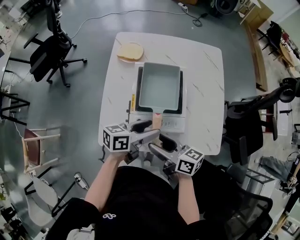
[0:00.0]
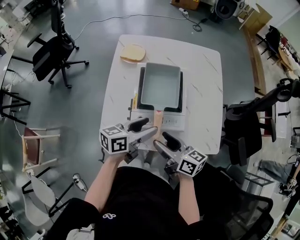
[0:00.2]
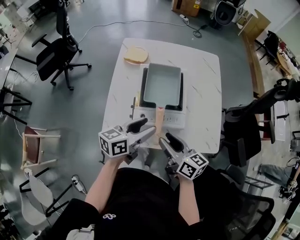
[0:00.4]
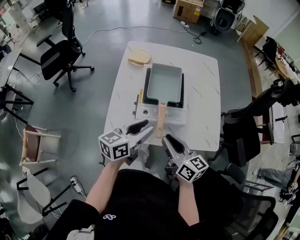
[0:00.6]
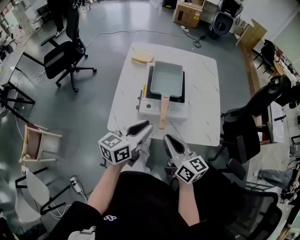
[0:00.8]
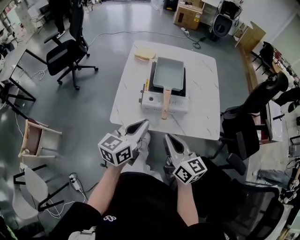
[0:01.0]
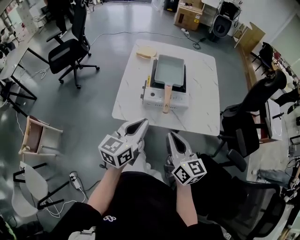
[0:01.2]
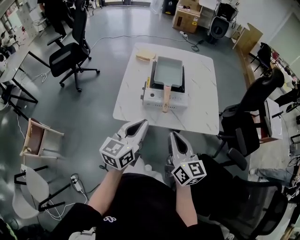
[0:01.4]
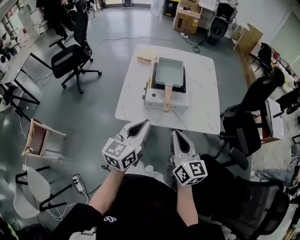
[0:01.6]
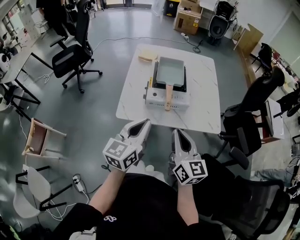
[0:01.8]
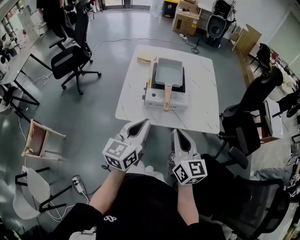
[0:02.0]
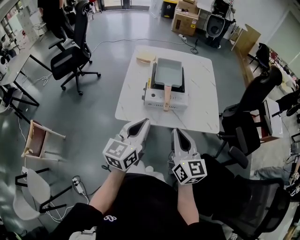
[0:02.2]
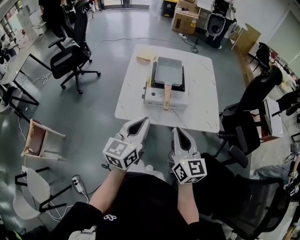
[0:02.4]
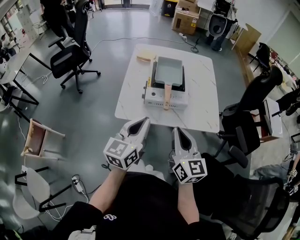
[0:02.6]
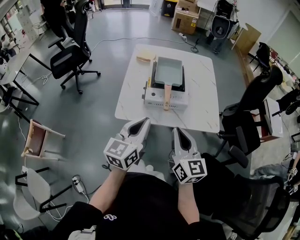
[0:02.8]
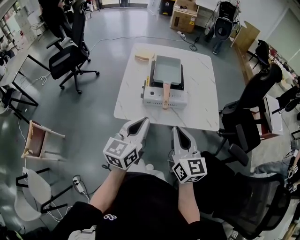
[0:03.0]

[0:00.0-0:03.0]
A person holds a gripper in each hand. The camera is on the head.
0.0 to 1.6 s: The grippers both shift backward and upward by roughly 25 cm. The left gripper changes its angle by roughly 50 degrees, and closes up. The right gripper turns by about 40 degrees, and closes up.
1.6 to 3.0 s: There are only small adjustments of the grippers.

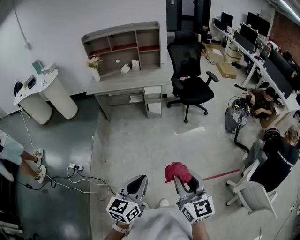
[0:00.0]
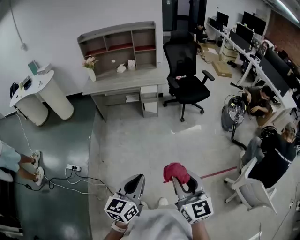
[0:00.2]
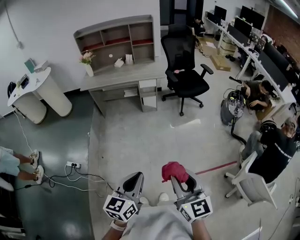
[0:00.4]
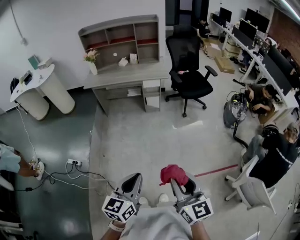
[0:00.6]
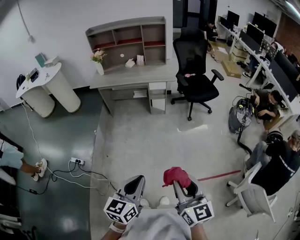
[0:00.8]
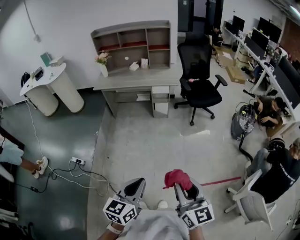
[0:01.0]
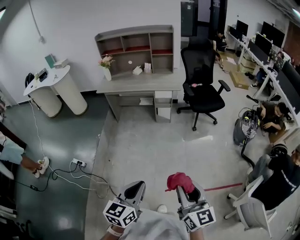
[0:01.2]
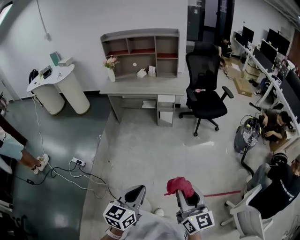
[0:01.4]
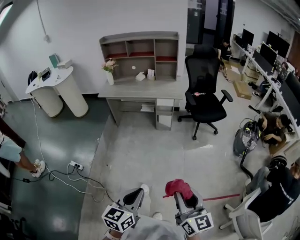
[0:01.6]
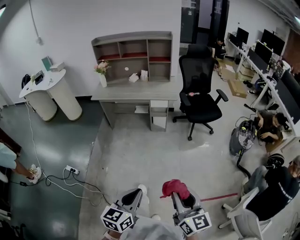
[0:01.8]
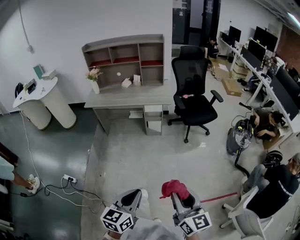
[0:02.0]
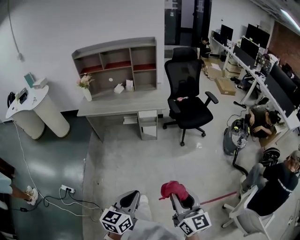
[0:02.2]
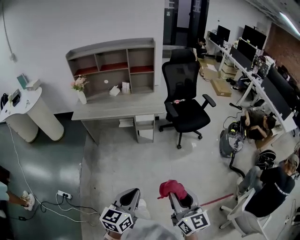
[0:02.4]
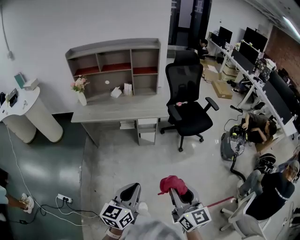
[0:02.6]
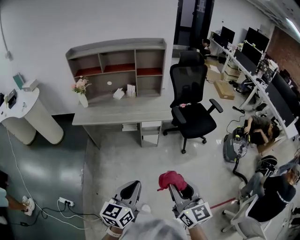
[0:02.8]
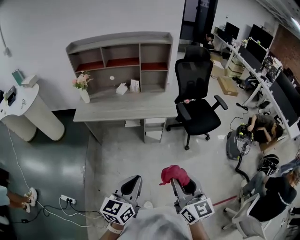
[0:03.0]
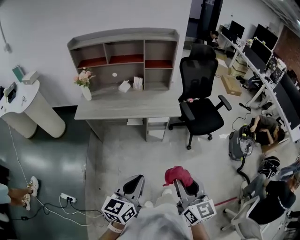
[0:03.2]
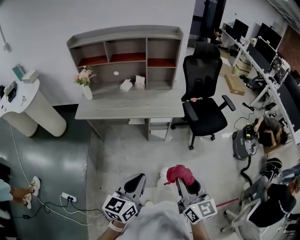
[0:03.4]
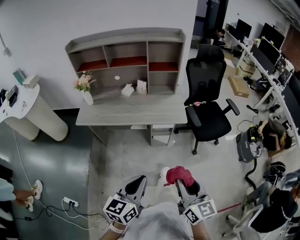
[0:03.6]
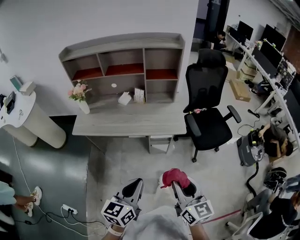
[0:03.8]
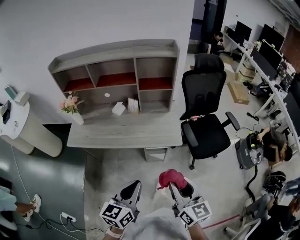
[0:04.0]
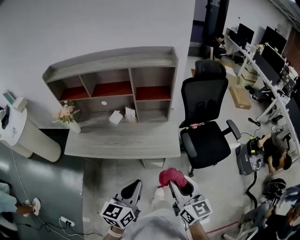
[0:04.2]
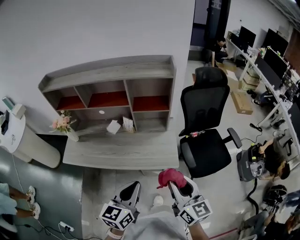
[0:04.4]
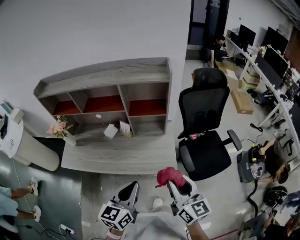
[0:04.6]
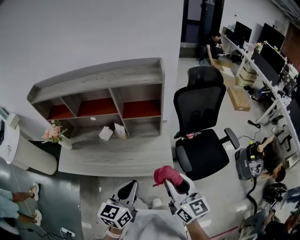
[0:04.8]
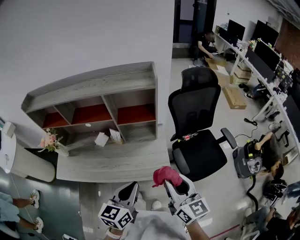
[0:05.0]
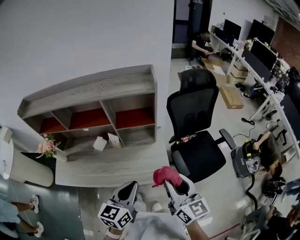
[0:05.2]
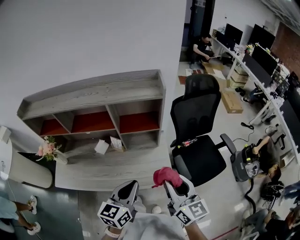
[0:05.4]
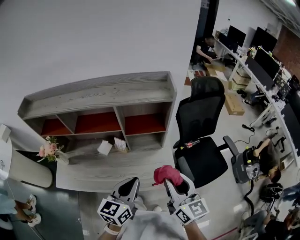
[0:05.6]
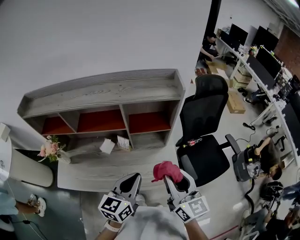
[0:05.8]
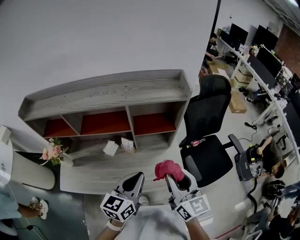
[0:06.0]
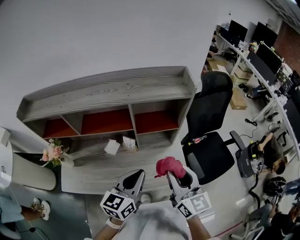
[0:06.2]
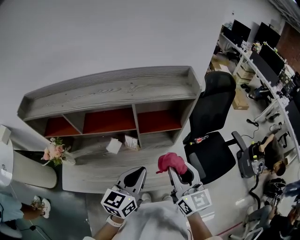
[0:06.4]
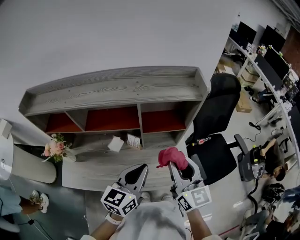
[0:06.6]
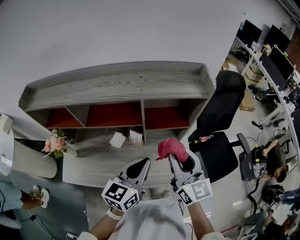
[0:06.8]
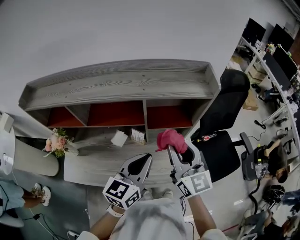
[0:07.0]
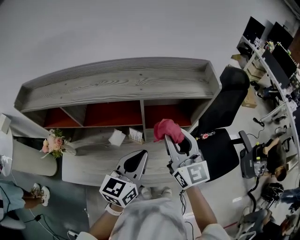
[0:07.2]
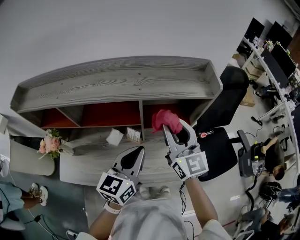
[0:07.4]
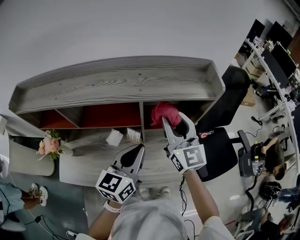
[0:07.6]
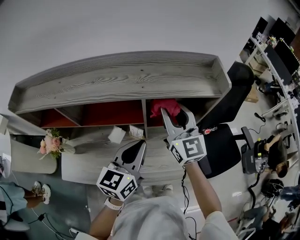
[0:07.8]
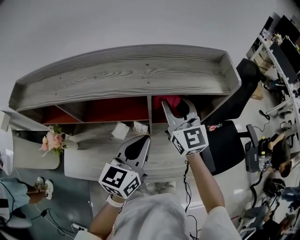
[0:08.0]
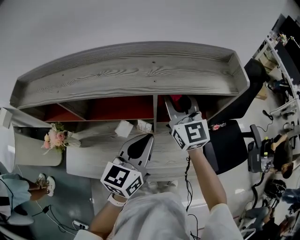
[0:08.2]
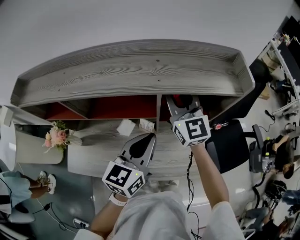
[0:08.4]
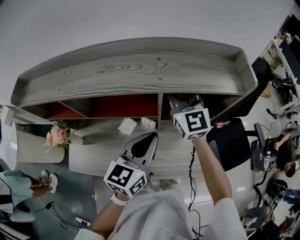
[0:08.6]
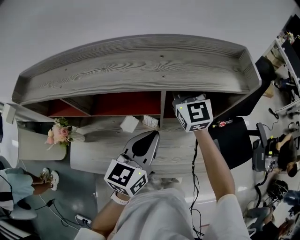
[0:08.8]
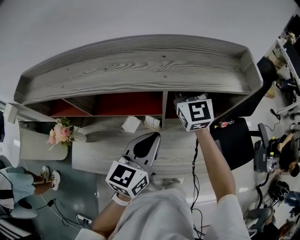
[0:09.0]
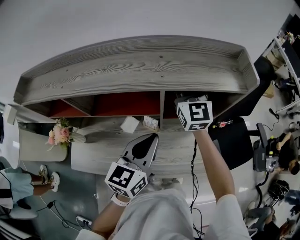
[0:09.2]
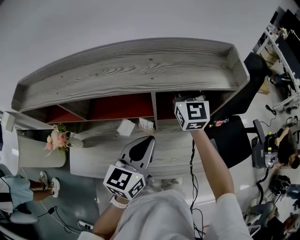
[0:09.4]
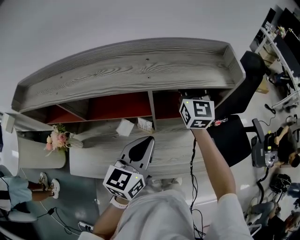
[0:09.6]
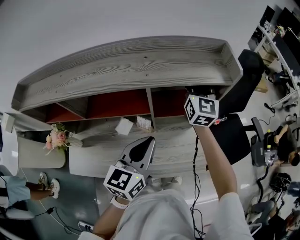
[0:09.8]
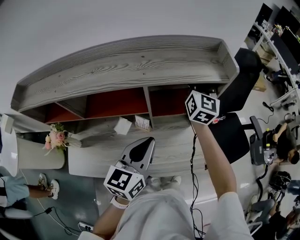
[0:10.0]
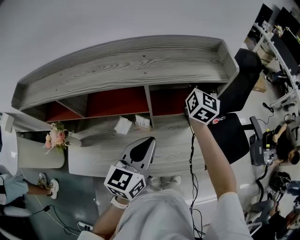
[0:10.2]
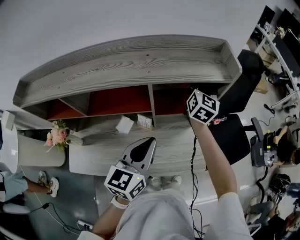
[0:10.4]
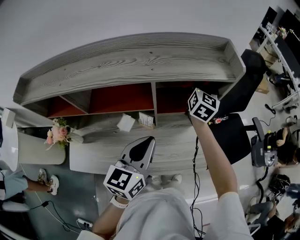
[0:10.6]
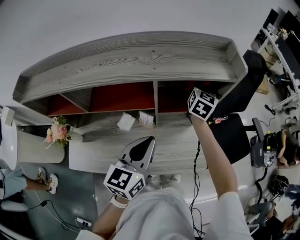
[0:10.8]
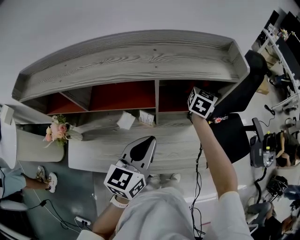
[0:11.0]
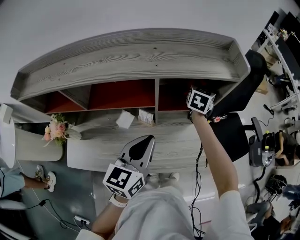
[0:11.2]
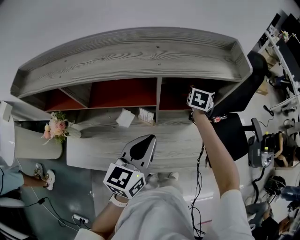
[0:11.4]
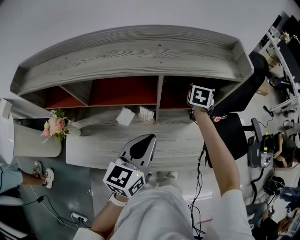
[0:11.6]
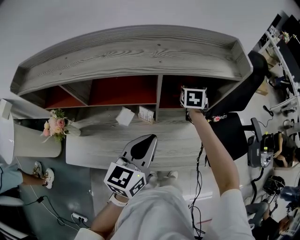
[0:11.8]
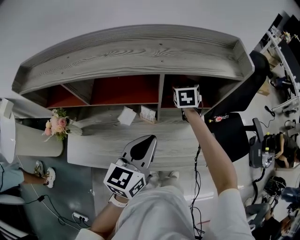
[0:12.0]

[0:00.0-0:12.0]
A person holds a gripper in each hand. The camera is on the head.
0.0 to 1.6 s: The right gripper changes place by roughly 5 cm.
1.6 to 3.0 s: Both grippers move forward, approximately 40 cm.
3.0 to 4.4 s: The pair of grippers is taken forward, about 40 cm.
4.4 to 6.0 s: The right gripper heads forward and to the left, covering approximately 20 cm. The left gripper is displaced forward by some 20 cm.
6.0 to 7.6 s: The left gripper shifts about 15 cm forward and to the left, while the right gripper moves forward, some 20 cm.
7.6 to 9.0 s: The right gripper heads forward and to the left, covering roughly 15 cm.
9.0 to 10.4 s: The right gripper travels to the right by approximately 15 cm, and changes its angle by approximately 40 degrees.
10.4 to 12.0 s: The right gripper goes about 15 cm downward and to the left, and tilts its fingers roughly 40 degrees downward.

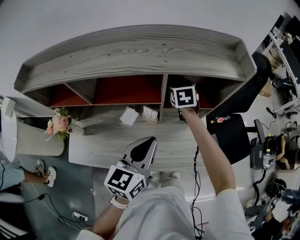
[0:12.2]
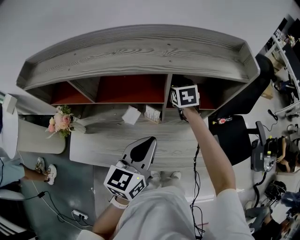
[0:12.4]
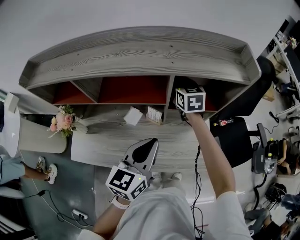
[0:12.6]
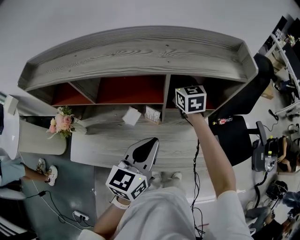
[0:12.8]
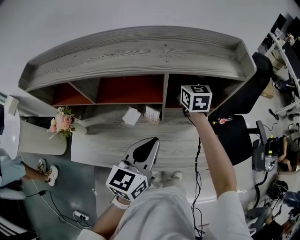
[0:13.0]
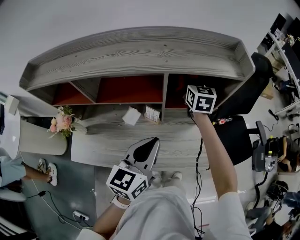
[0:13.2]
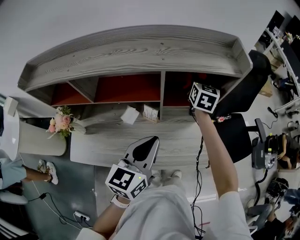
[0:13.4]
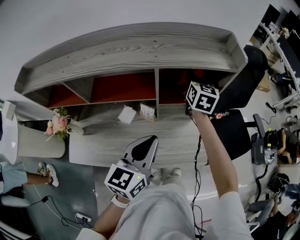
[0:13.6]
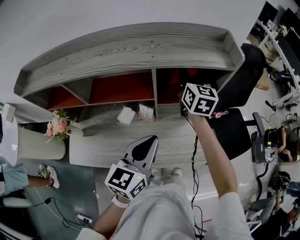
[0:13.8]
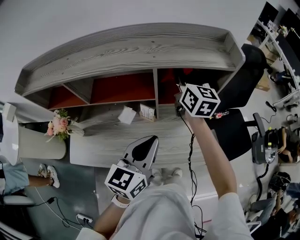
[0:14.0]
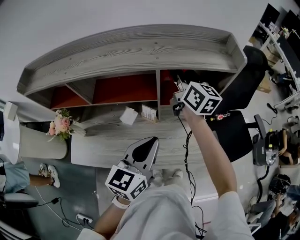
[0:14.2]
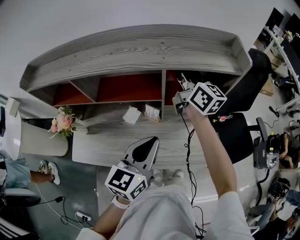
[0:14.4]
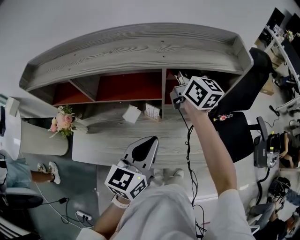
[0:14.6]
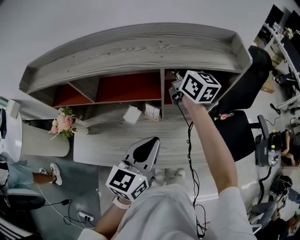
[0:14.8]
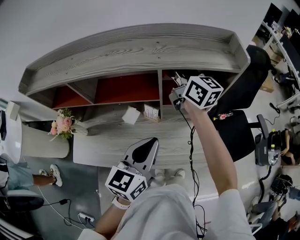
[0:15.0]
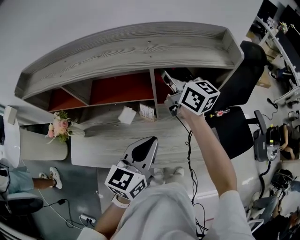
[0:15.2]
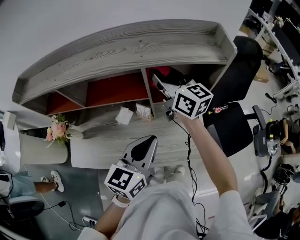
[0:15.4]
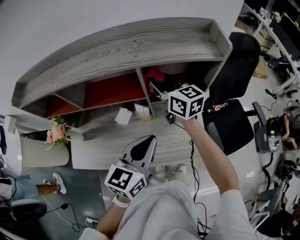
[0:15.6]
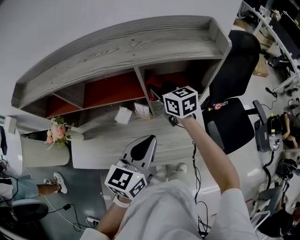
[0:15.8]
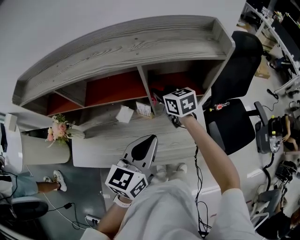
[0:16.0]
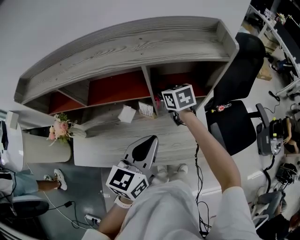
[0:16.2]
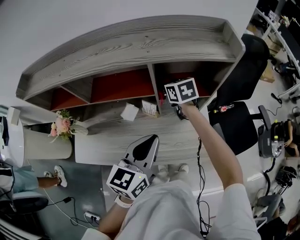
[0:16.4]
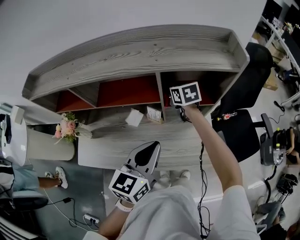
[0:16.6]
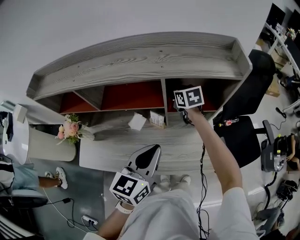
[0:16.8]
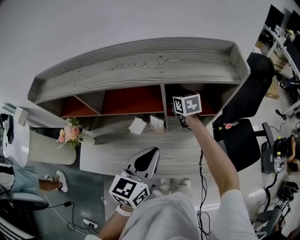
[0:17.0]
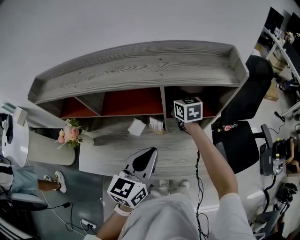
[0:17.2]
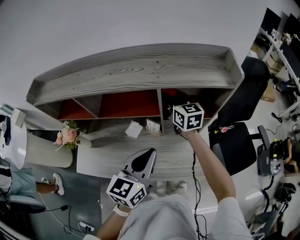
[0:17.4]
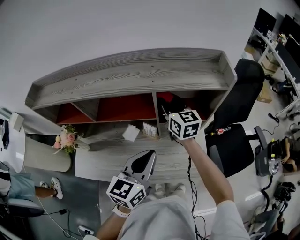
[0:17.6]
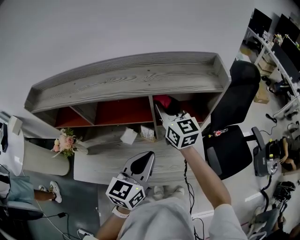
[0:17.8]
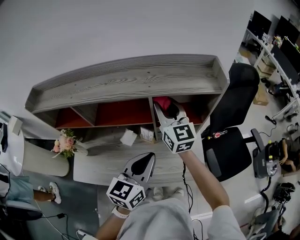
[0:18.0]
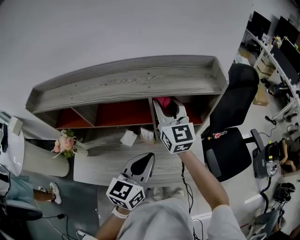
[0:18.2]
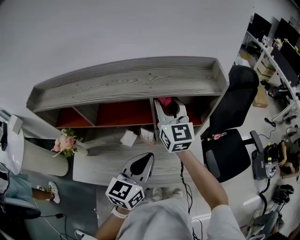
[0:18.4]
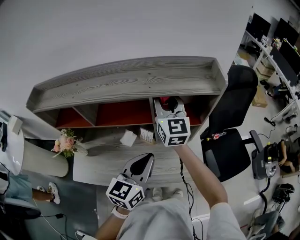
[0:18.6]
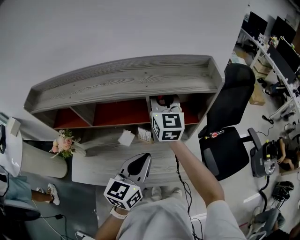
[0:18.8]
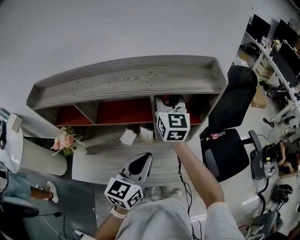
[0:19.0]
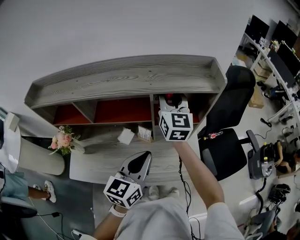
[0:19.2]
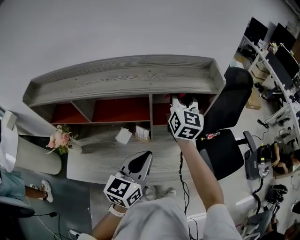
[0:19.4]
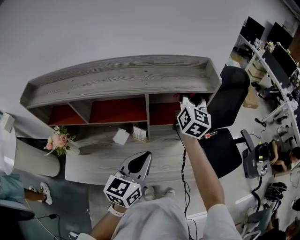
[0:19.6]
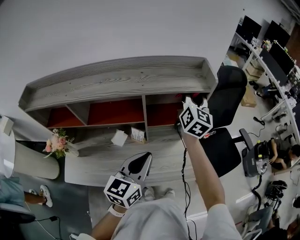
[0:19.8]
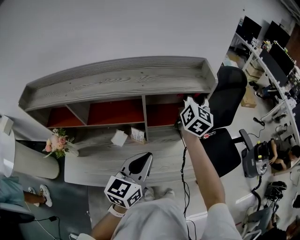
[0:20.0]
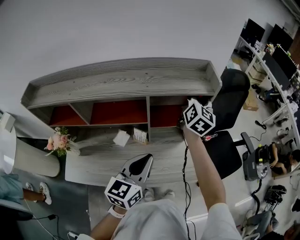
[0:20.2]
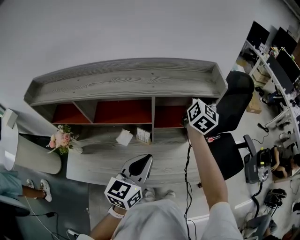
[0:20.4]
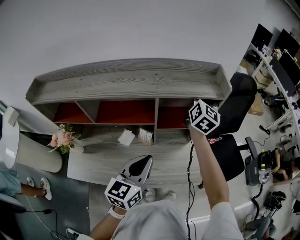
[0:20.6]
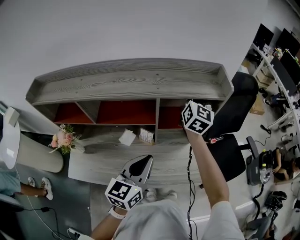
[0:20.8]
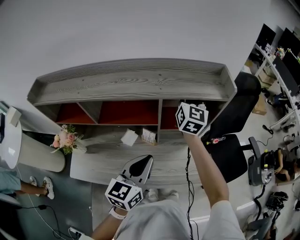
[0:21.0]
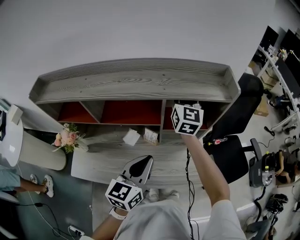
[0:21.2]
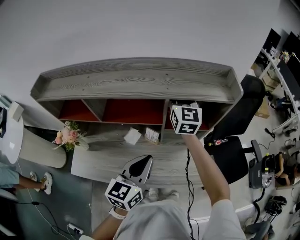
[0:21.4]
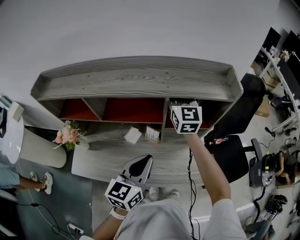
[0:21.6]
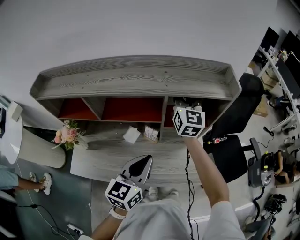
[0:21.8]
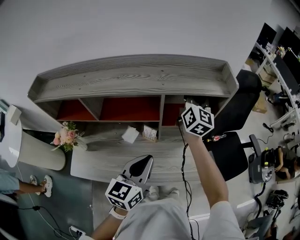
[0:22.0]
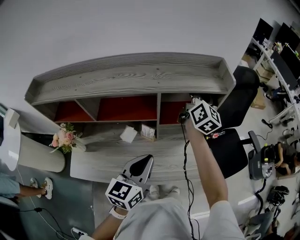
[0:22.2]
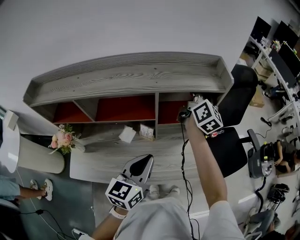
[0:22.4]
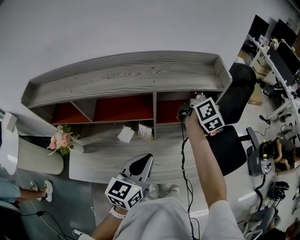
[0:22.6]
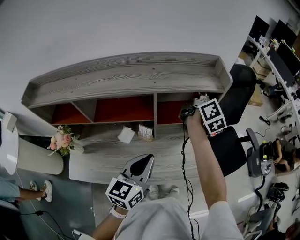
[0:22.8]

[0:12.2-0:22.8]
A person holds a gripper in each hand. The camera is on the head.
12.2 to 13.8 s: The right gripper moves upward and to the right, roughly 15 cm, and turns by some 30 degrees.
13.8 to 15.2 s: The right gripper travels to the left and upward by some 10 cm, and turns by some 40 degrees.
15.2 to 16.8 s: The right gripper moves downward, approximately 20 cm, and tips its fingers downward by approximately 50 degrees.
16.8 to 18.2 s: The right gripper goes about 25 cm upward and backward, and tilts its fingers some 40 degrees upward.
18.2 to 19.8 s: The right gripper shifts roughly 15 cm to the right and forward, and changes its angle by about 30 degrees.
19.8 to 21.2 s: The left gripper travels to the left by approximately 5 cm. Meanwhile the right gripper heads to the left, covering roughly 15 cm.
21.2 to 22.8 s: The right gripper travels to the right by about 15 cm, and rolls clockwise, seen from behind, by about 40 degrees.
